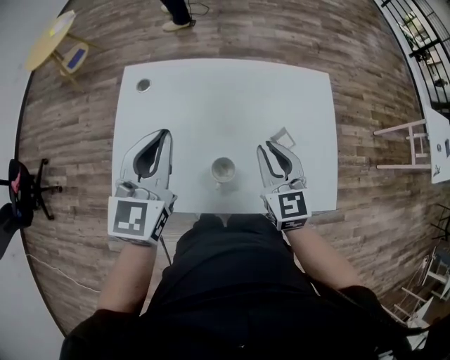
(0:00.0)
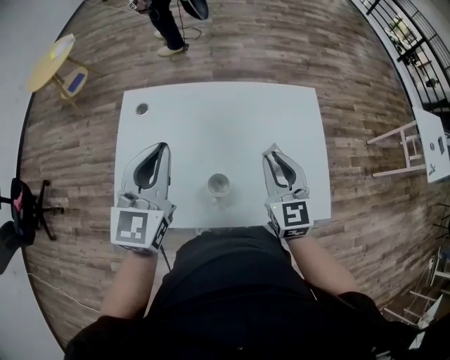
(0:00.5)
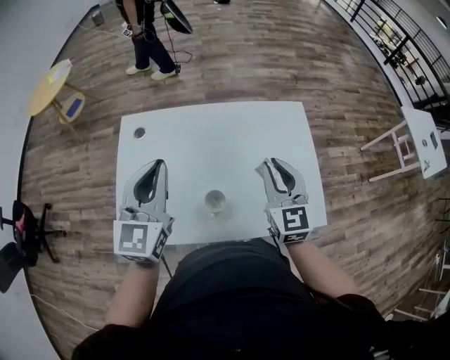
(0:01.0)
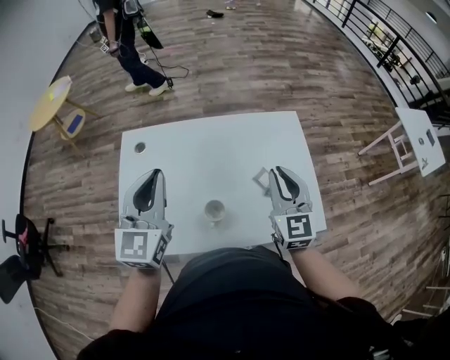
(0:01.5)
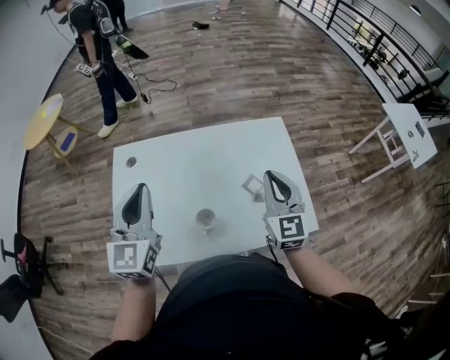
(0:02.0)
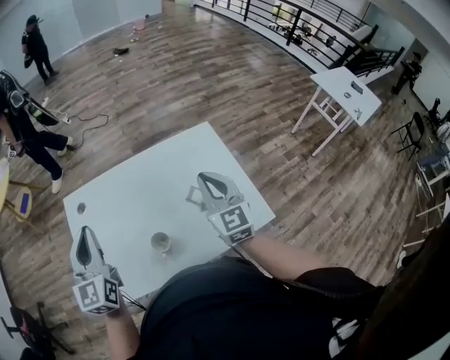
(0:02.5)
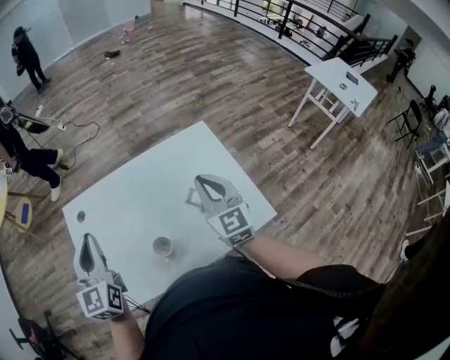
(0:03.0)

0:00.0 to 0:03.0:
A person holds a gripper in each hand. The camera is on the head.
0:00.0 to 0:01.5: The right gripper is displaced to the right and upward by approximately 10 cm.
0:01.5 to 0:03.0: The grippers stay close to where they were, moving slightly.

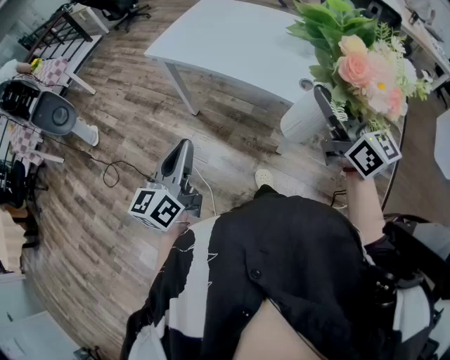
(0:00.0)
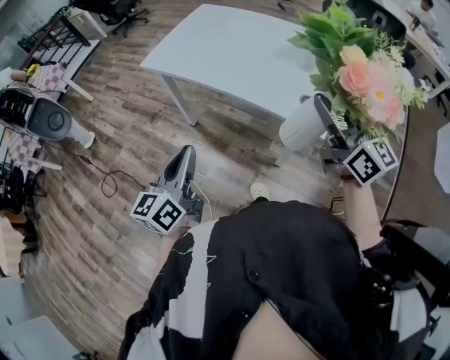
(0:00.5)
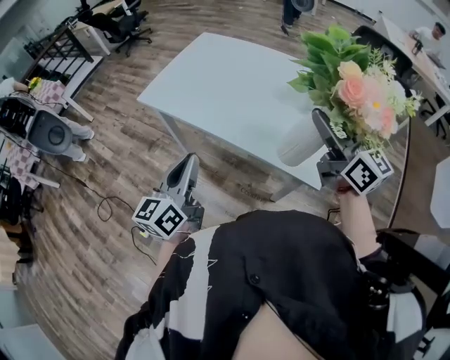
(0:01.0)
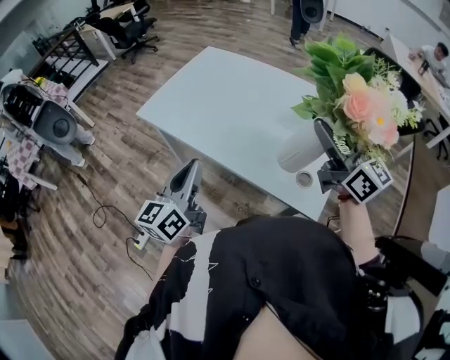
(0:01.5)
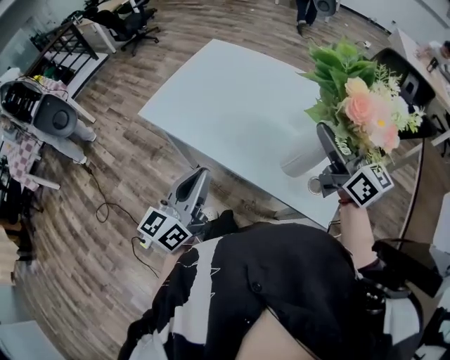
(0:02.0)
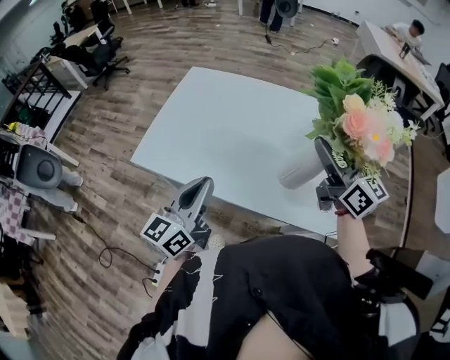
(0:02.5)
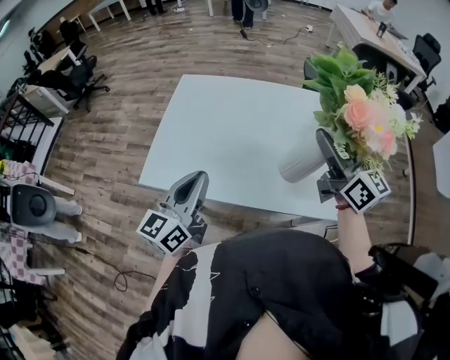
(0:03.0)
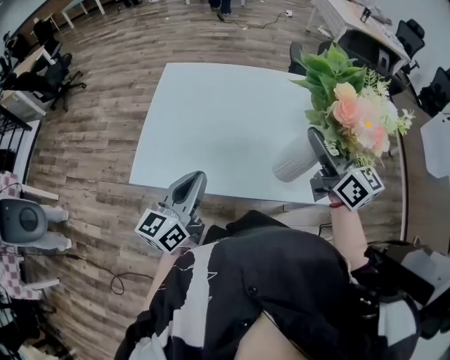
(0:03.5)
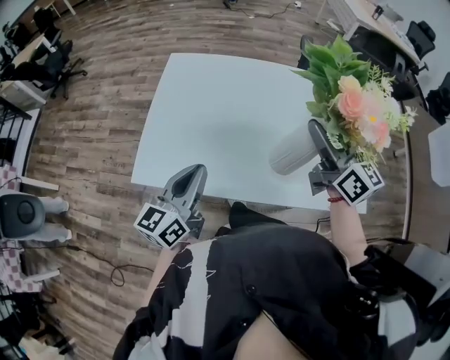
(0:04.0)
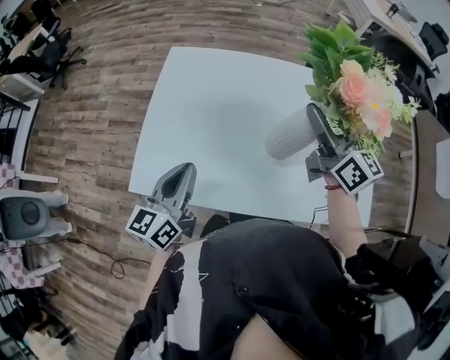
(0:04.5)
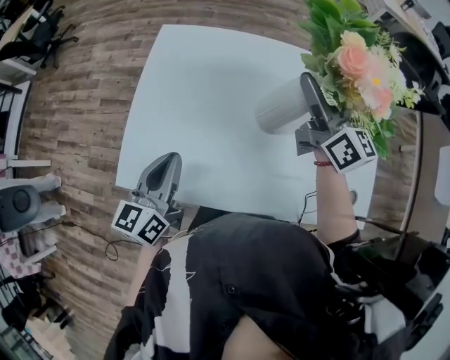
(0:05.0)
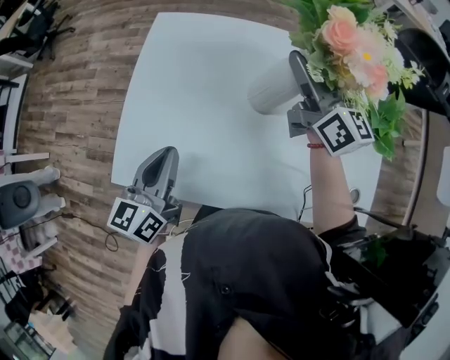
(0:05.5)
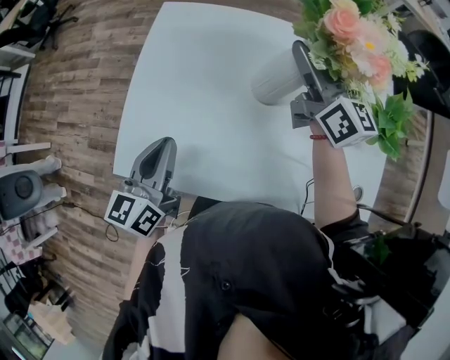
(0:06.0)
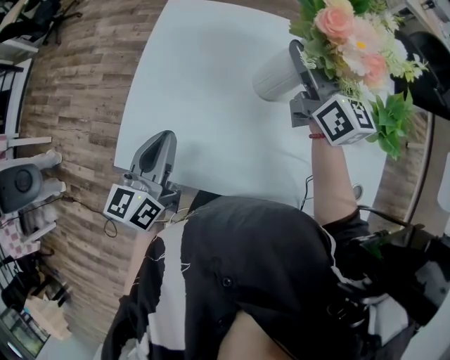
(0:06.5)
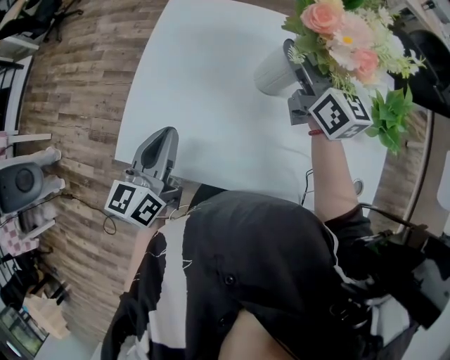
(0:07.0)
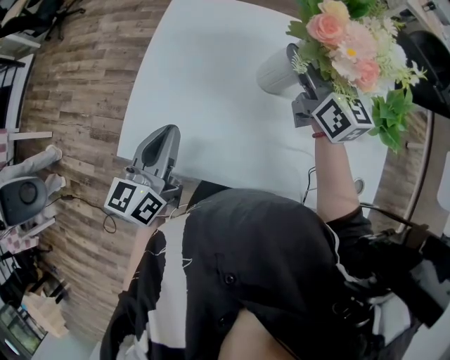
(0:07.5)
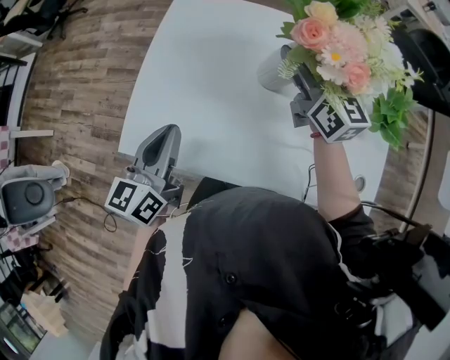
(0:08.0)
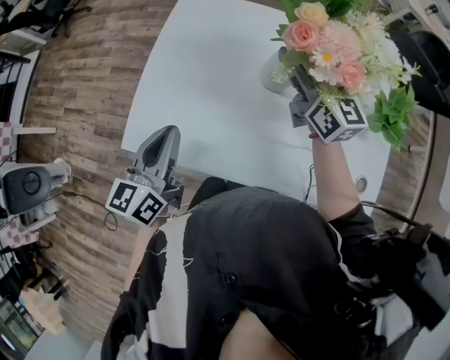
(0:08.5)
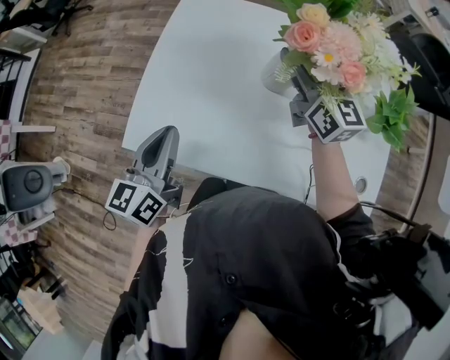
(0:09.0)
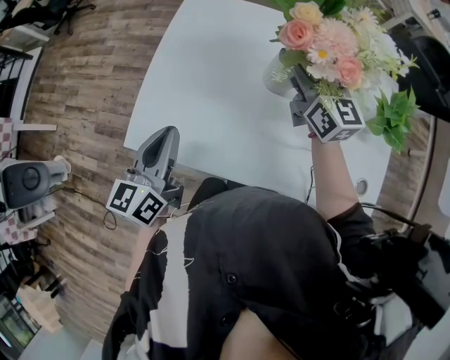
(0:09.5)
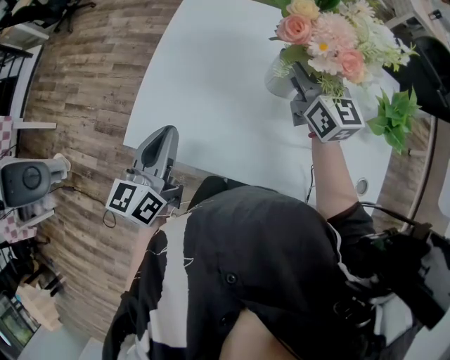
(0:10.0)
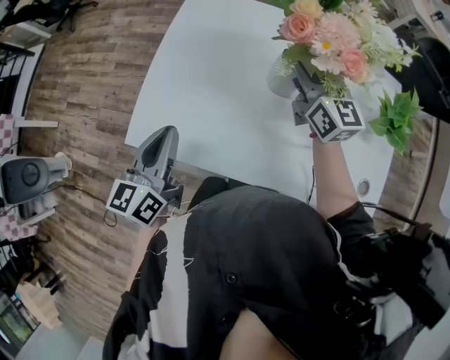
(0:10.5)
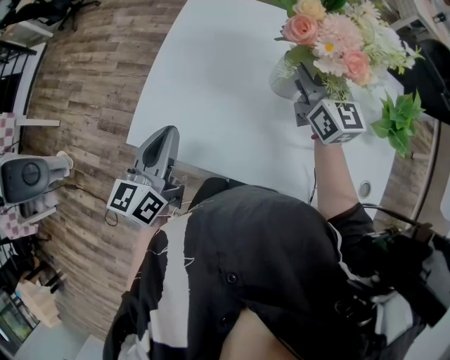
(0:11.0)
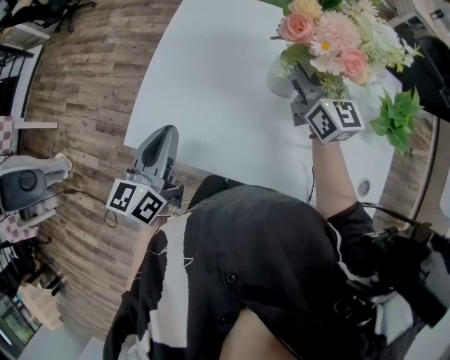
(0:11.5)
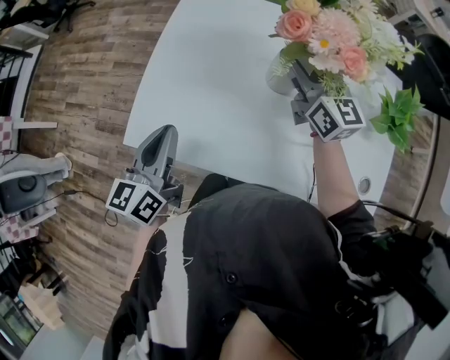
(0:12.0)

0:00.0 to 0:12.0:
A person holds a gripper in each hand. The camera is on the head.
0:00.0 to 0:02.0: The grippers both shift forward by approximately 30 cm.
0:02.0 to 0:04.0: The left gripper moves about 30 cm, and rotates approximately 20 degrees, while the right gripper shifts by some 20 cm, and rotates roughly 30 degrees.
0:04.0 to 0:06.0: The left gripper moves forward and downward, about 10 cm. The right gripper goes roughly 25 cm forward.
0:06.0 to 0:08.0: The right gripper moves some 5 cm.
0:08.0 to 0:10.0: There are only small adjustments of the grippers.
0:10.0 to 0:12.0: The two grippers keep their place.

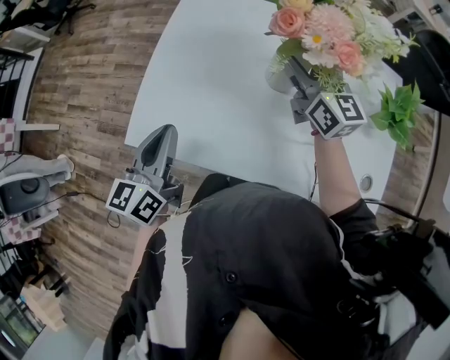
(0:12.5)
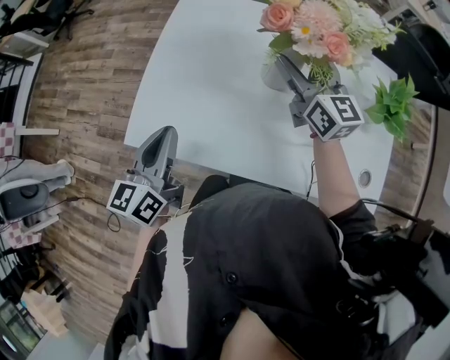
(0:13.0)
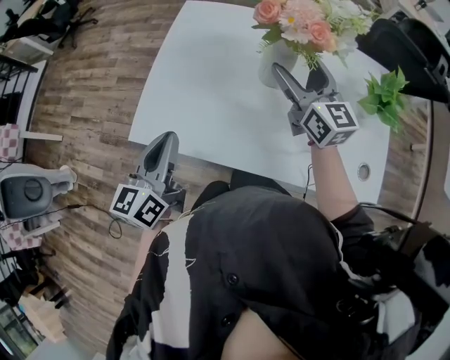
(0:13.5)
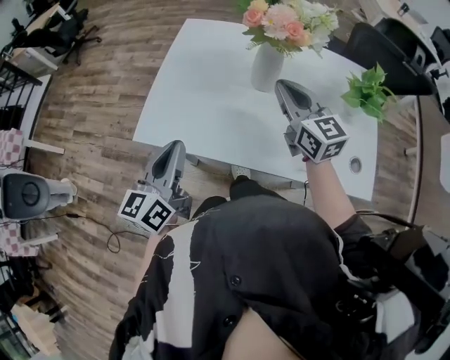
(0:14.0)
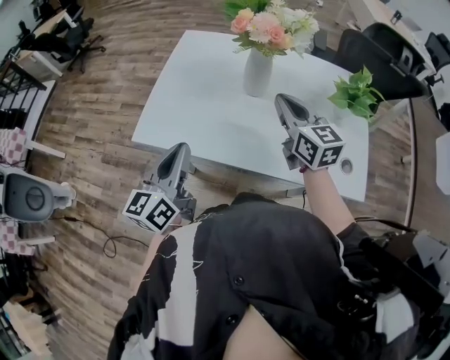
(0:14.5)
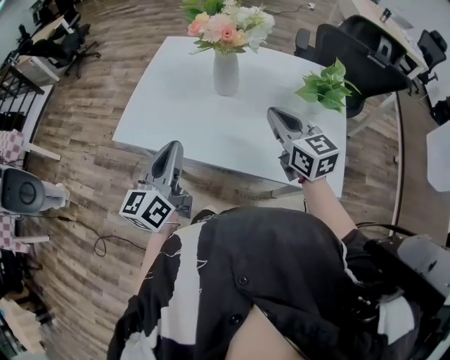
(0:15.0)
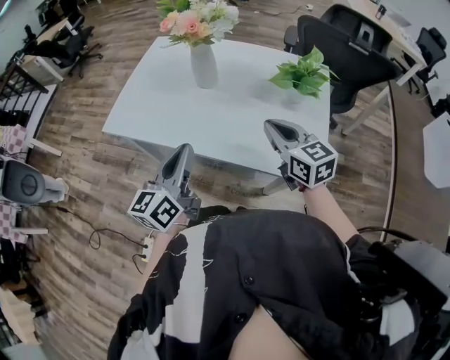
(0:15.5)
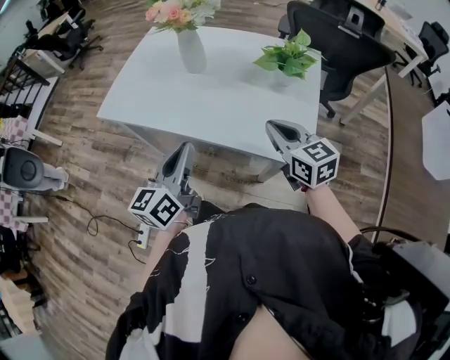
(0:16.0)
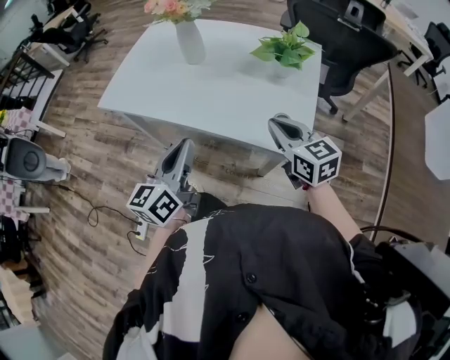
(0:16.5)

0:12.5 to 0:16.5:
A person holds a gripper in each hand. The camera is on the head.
0:12.5 to 0:14.5: Both grippers move backward, roughly 15 cm. The right gripper closes.
0:14.5 to 0:16.5: The right gripper goes about 35 cm backward and to the right. The left gripper travels to the right and backward by roughly 35 cm.

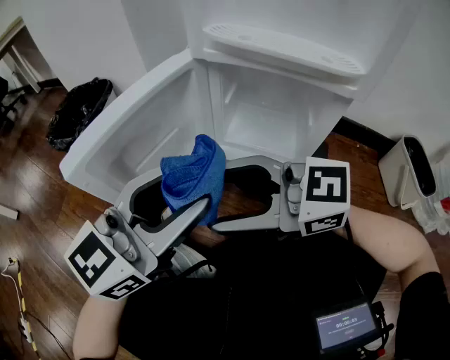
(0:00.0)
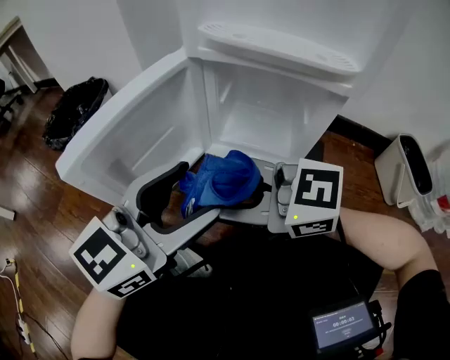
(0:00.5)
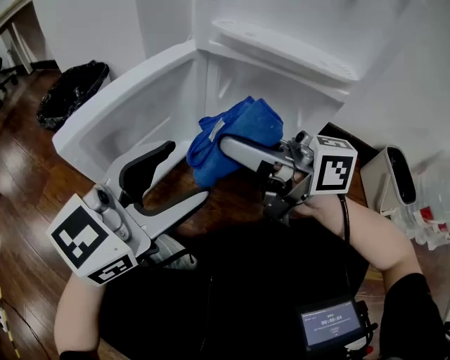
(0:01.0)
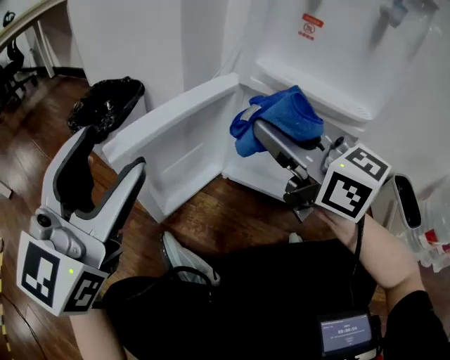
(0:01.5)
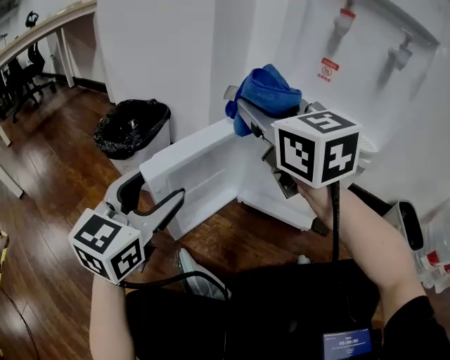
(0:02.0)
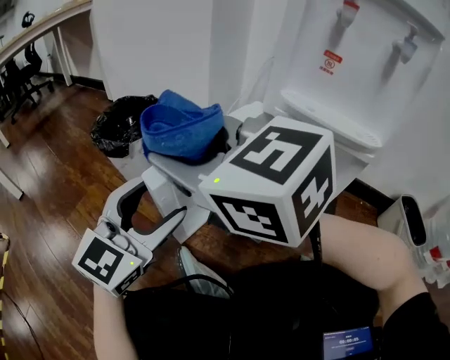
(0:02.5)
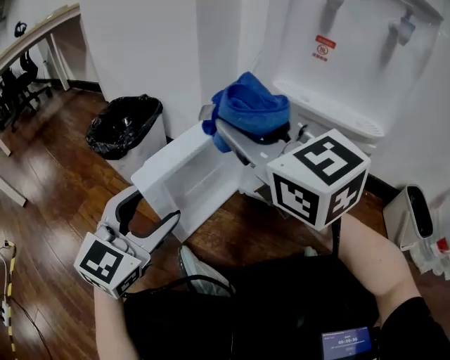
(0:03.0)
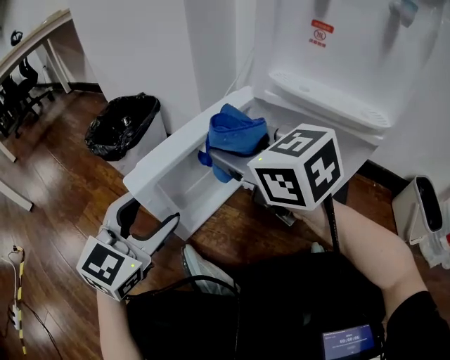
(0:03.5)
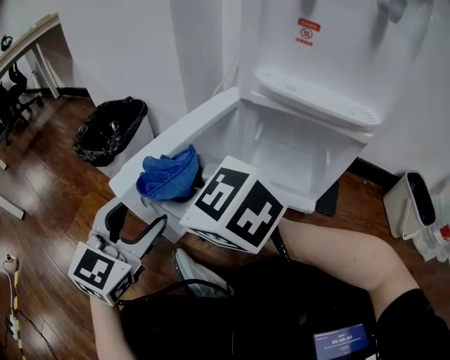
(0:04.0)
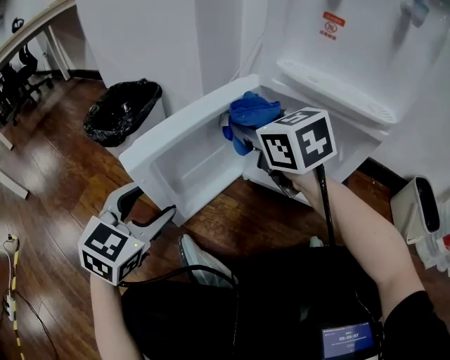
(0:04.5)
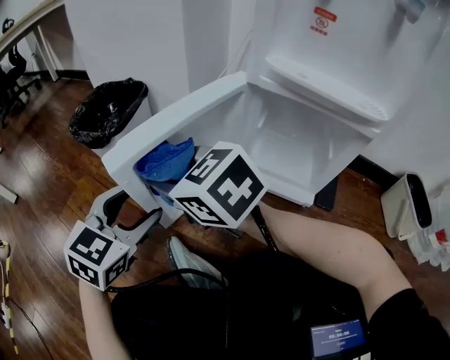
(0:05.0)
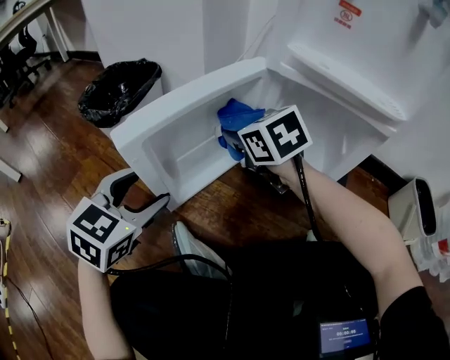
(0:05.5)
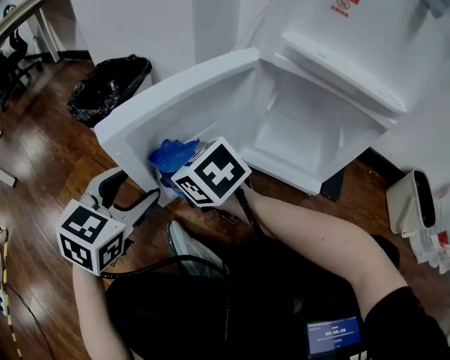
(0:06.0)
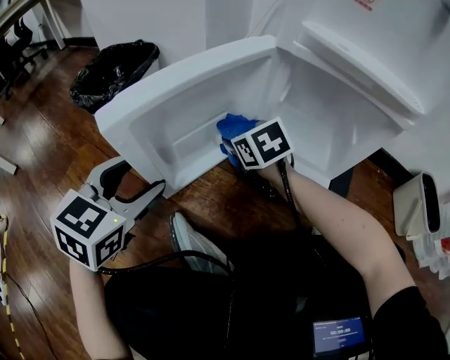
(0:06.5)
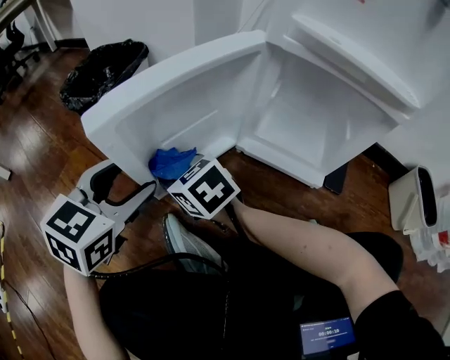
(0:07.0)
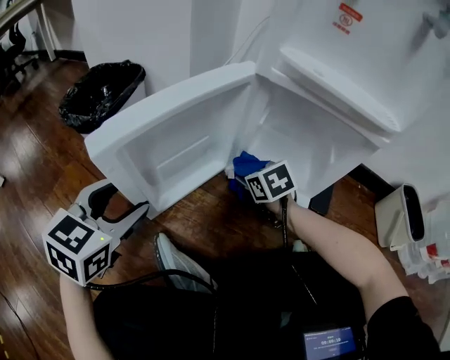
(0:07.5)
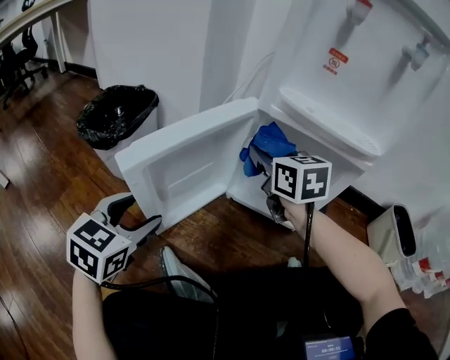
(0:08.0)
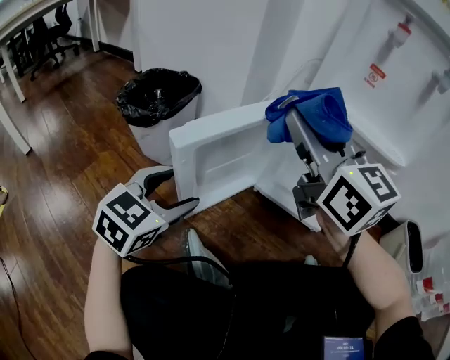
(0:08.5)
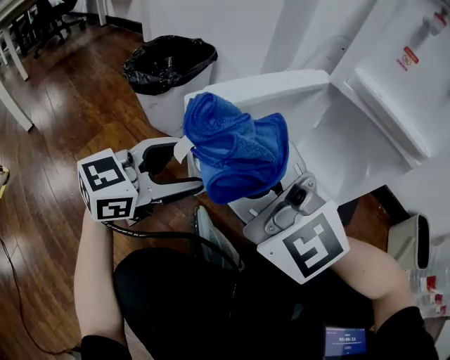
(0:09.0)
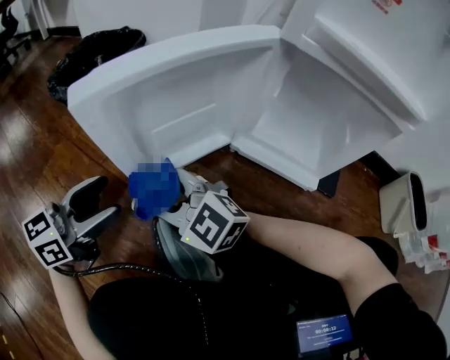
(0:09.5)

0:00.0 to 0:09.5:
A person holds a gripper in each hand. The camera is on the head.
0:00.0 to 0:02.0: The left gripper reaches about 10 cm upward, then returns, and rotates roughly 30 degrees. The right gripper moves roughly 25 cm, swivels some 50 degrees, and closes.
0:02.0 to 0:04.0: The left gripper travels downward by some 5 cm, while the right gripper goes left and right, approximately 15 cm each way, reversing 2 times, and rotates roughly 30 degrees.
0:04.0 to 0:05.5: The left gripper heads downward, covering approximately 5 cm; the right gripper goes left and right, some 15 cm each way, reversing 2 times, and swivels approximately 30 degrees.
0:05.5 to 0:07.5: The right gripper goes left and right, approximately 25 cm each way, reversing 3 times.
0:07.5 to 0:09.5: The left gripper goes approximately 5 cm to the left, and swivels some 30 degrees. Meanwhile the right gripper moves to the left and backward, roughly 30 cm, goes upward and returns, approximately 40 cm each way, and tilts its fingers approximately 30 degrees upward.
